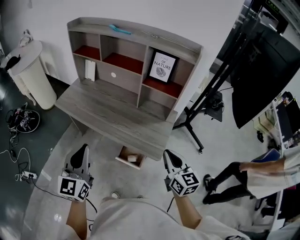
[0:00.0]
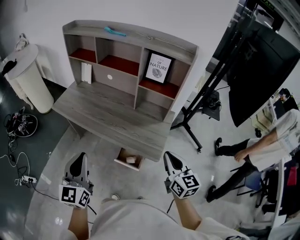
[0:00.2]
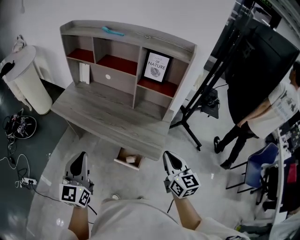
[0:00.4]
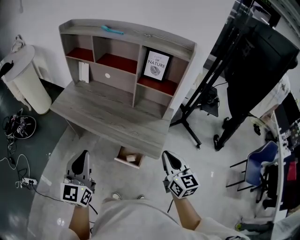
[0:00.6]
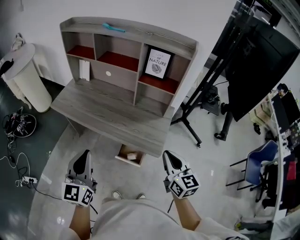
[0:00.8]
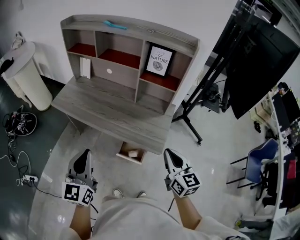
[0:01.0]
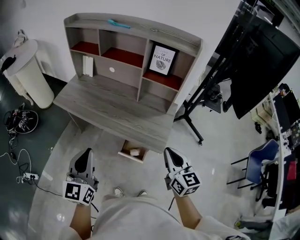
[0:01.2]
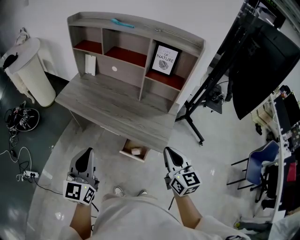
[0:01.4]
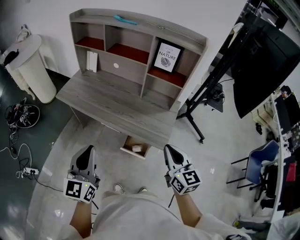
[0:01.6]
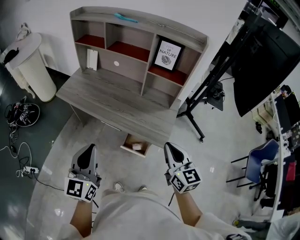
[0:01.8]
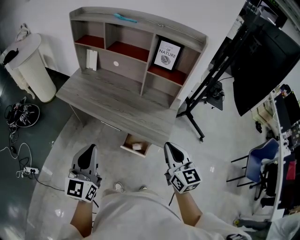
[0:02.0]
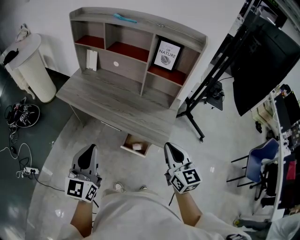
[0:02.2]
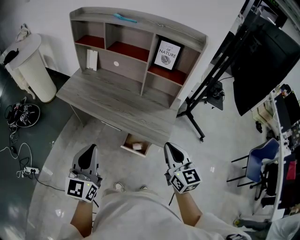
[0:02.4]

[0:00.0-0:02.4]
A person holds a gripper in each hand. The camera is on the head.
0:00.0 to 0:01.2: The grippers make only small movements.
0:01.2 to 0:02.4: The grippers move only a little.

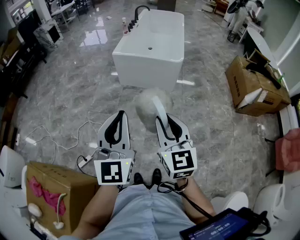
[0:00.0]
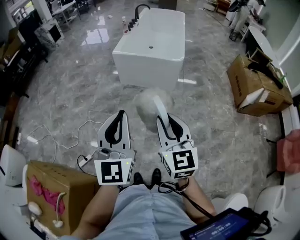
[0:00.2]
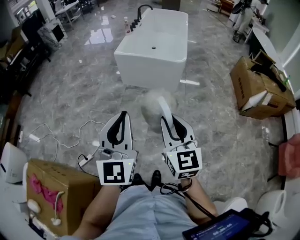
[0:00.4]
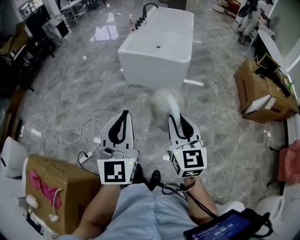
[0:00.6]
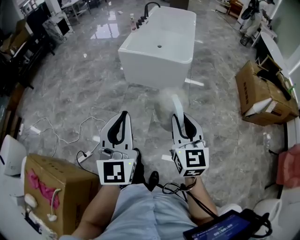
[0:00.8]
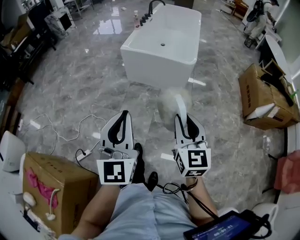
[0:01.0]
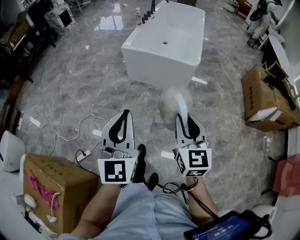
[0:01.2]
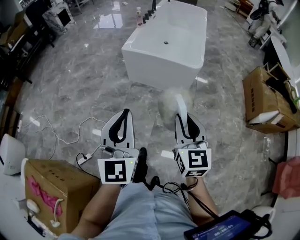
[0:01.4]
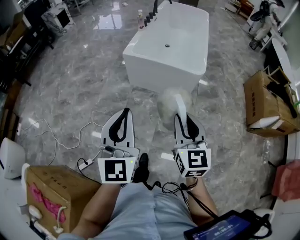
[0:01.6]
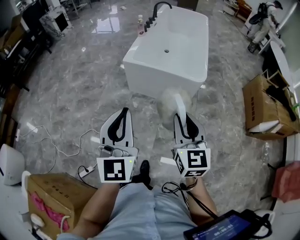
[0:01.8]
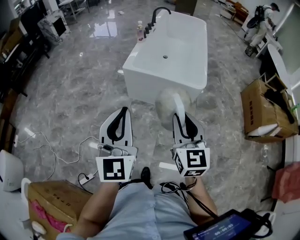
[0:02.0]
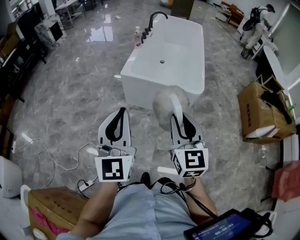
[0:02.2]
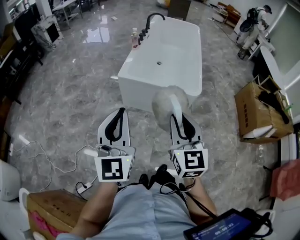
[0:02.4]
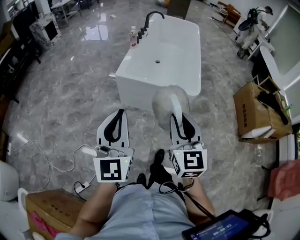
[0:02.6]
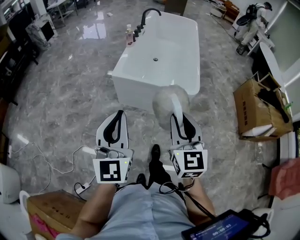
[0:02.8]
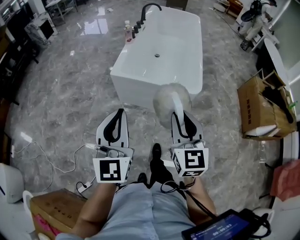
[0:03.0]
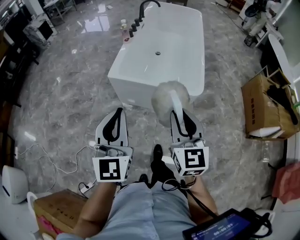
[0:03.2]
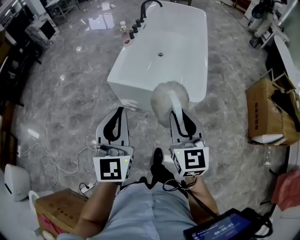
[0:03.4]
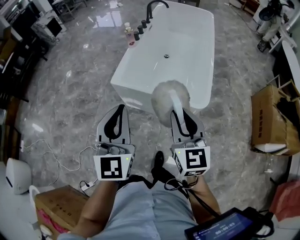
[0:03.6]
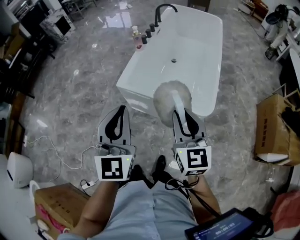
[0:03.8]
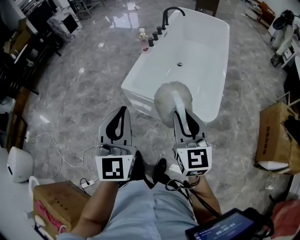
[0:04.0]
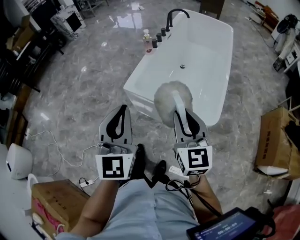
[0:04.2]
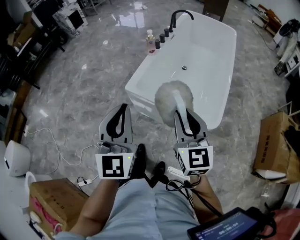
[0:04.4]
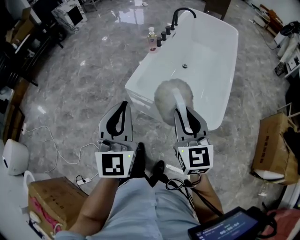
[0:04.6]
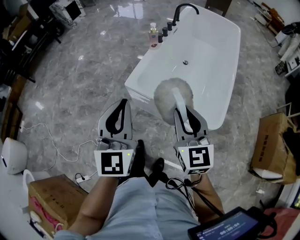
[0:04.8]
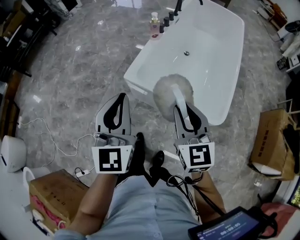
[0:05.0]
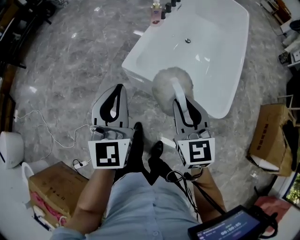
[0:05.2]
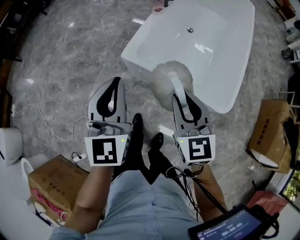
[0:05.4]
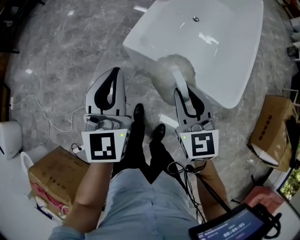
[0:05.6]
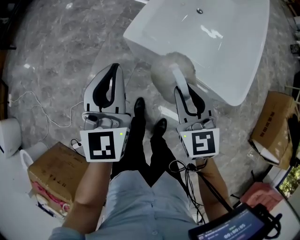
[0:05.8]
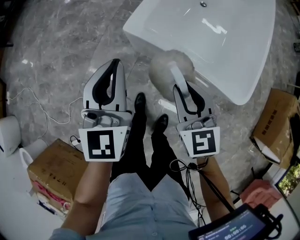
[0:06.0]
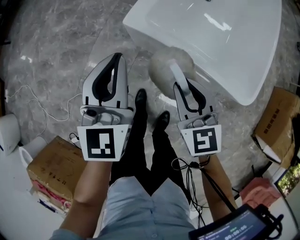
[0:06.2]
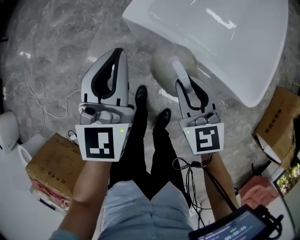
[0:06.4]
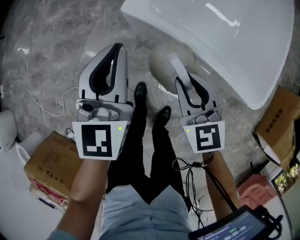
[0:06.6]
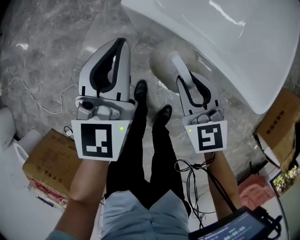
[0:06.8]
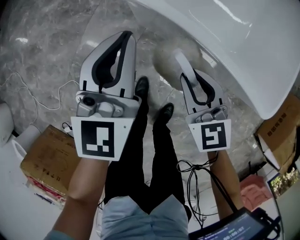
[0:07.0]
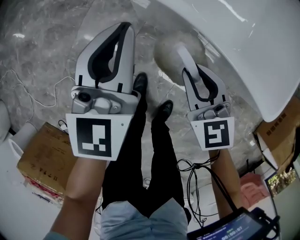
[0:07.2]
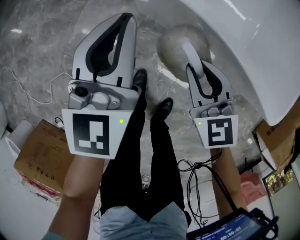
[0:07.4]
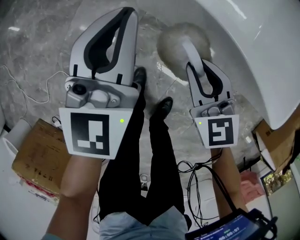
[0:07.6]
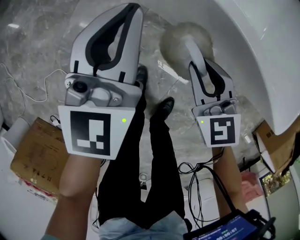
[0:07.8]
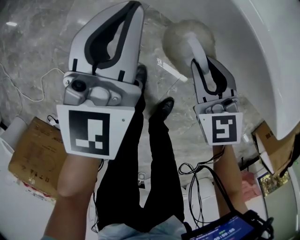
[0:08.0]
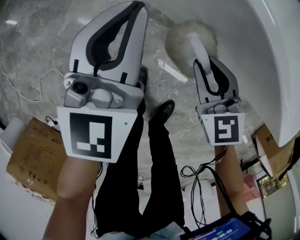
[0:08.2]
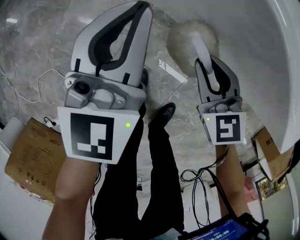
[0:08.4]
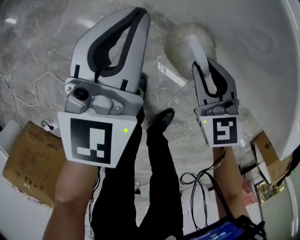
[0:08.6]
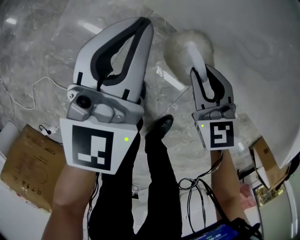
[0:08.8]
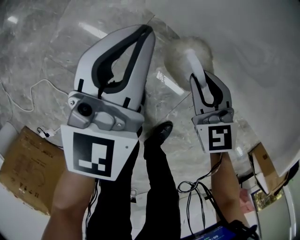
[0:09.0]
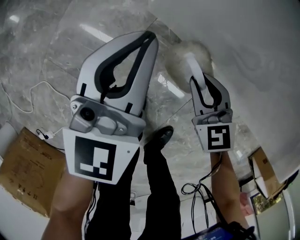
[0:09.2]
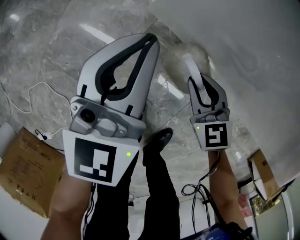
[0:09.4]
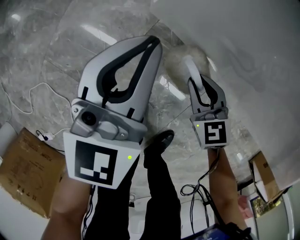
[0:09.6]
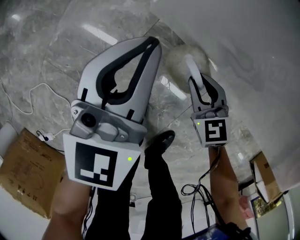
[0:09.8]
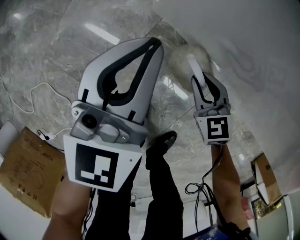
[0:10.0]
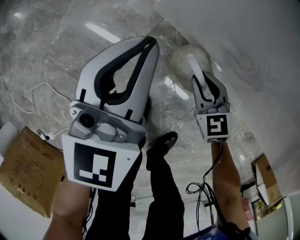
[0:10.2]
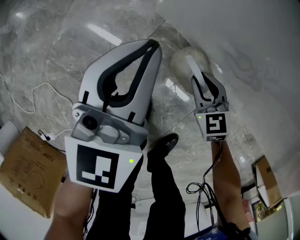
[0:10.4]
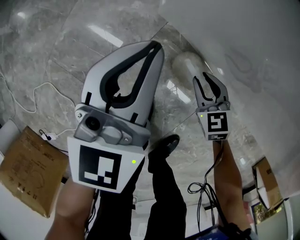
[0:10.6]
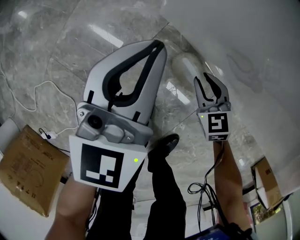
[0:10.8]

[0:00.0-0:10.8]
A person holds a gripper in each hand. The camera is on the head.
0:00.0 to 0:01.6: The two grippers go roughly 25 cm forward.
0:01.6 to 0:03.0: The two grippers go some 20 cm forward.
0:03.0 to 0:04.6: Both grippers move forward, roughly 25 cm.
0:04.6 to 0:06.2: The left gripper shifts approximately 30 cm downward and forward; the right gripper shifts approximately 30 cm downward, to the left and forward, and swivels some 20 degrees.
0:06.2 to 0:07.8: Both grippers travel together downward, approximately 30 cm.
0:07.8 to 0:09.2: Both grippers move downward, approximately 15 cm.
0:09.2 to 0:10.8: The right gripper goes roughly 10 cm downward.

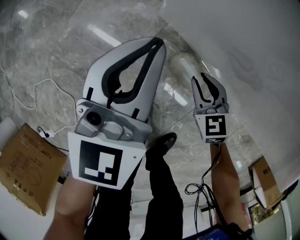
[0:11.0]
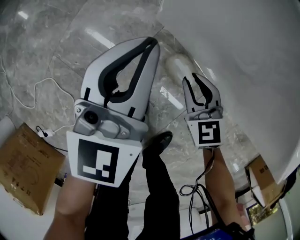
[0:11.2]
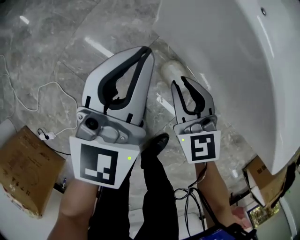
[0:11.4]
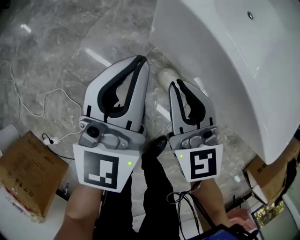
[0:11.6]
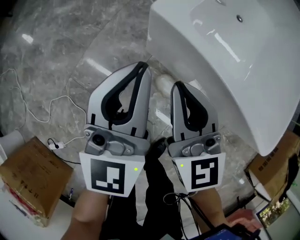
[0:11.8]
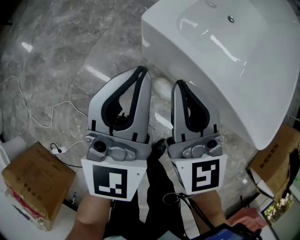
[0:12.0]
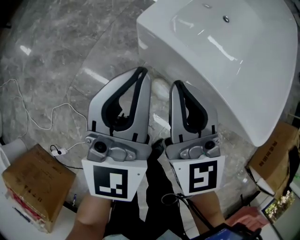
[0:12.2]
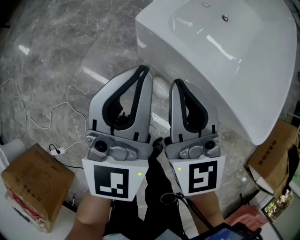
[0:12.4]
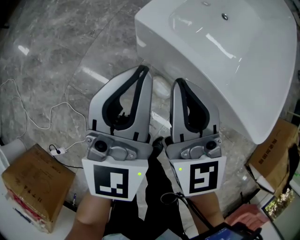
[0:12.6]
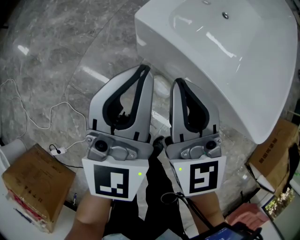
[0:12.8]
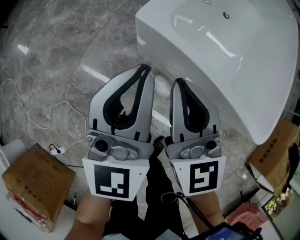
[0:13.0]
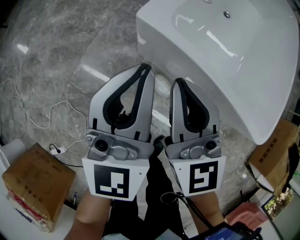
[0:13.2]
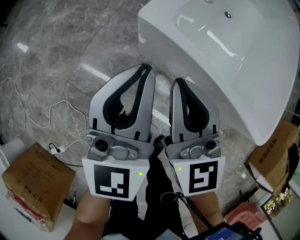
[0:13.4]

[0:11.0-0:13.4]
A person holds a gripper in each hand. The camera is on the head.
0:11.0 to 0:12.2: Both grippers travel together upward, roughly 40 cm. The right gripper angles its fingers upward, by roughly 40 degrees, and closes.
0:12.2 to 0:13.4: The grippers stay close to where they were, moving slightly.

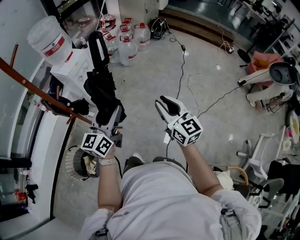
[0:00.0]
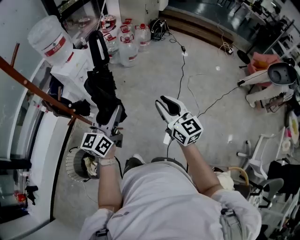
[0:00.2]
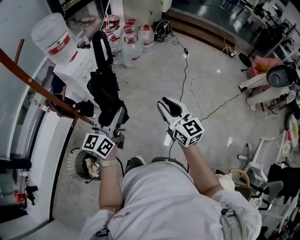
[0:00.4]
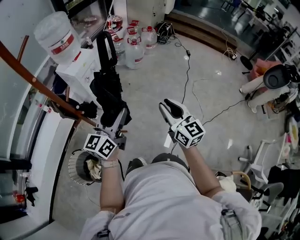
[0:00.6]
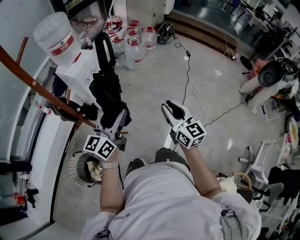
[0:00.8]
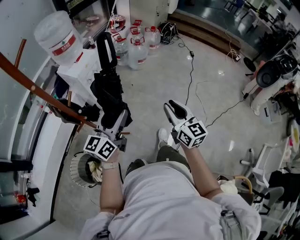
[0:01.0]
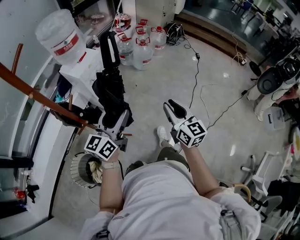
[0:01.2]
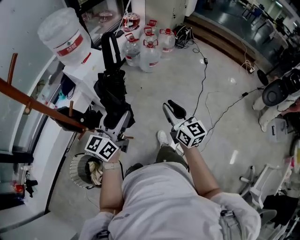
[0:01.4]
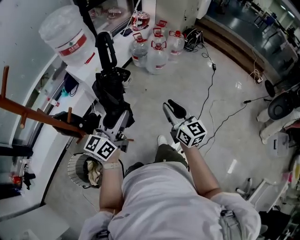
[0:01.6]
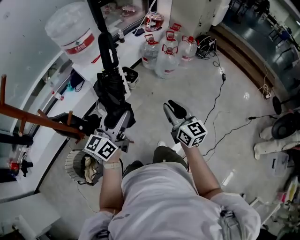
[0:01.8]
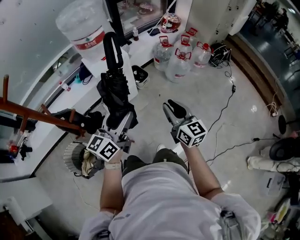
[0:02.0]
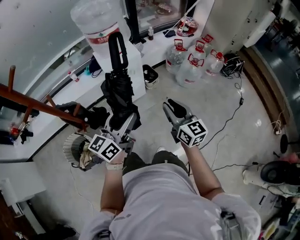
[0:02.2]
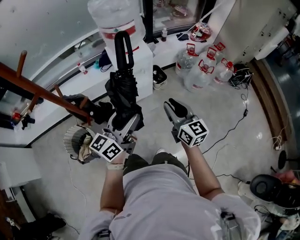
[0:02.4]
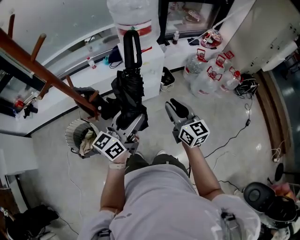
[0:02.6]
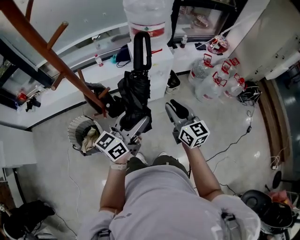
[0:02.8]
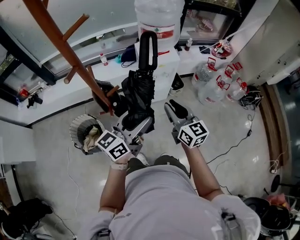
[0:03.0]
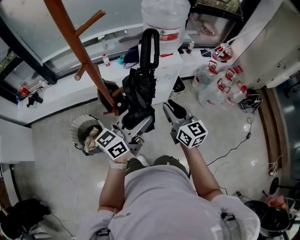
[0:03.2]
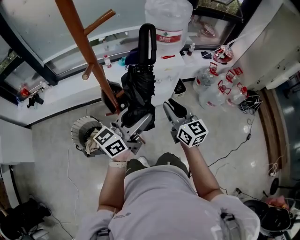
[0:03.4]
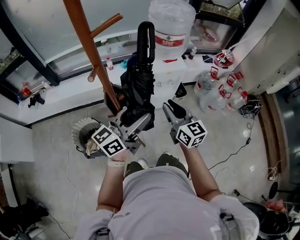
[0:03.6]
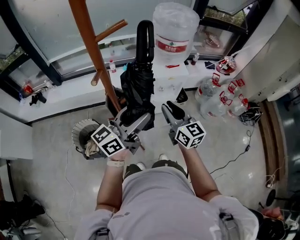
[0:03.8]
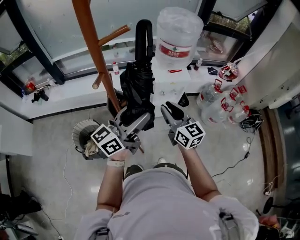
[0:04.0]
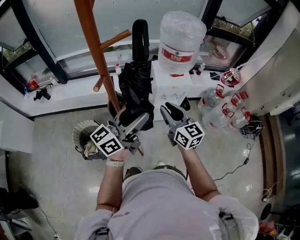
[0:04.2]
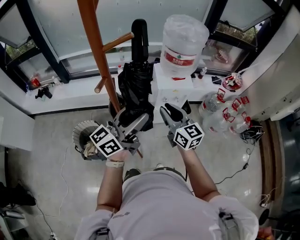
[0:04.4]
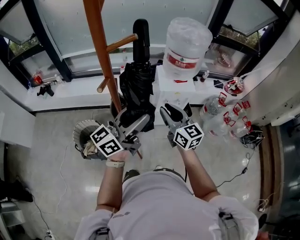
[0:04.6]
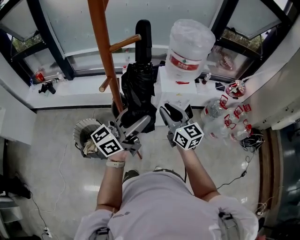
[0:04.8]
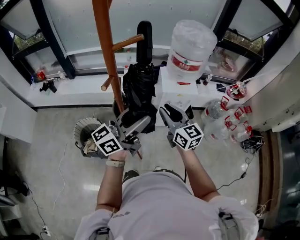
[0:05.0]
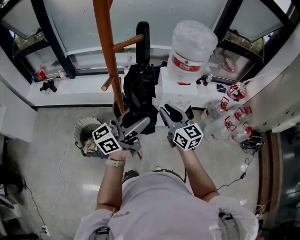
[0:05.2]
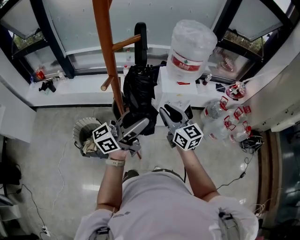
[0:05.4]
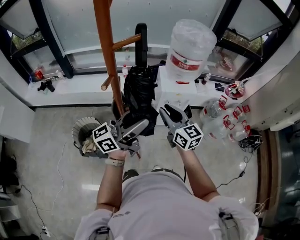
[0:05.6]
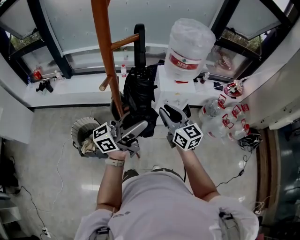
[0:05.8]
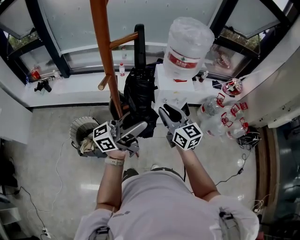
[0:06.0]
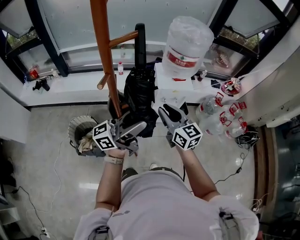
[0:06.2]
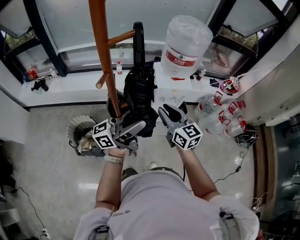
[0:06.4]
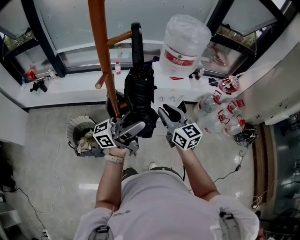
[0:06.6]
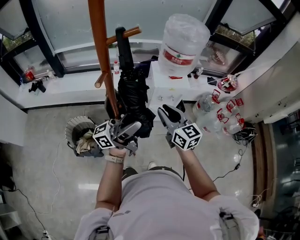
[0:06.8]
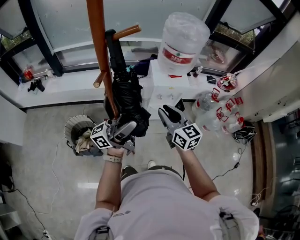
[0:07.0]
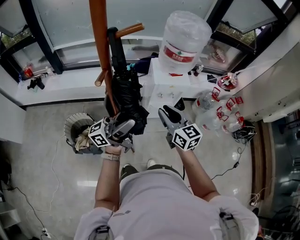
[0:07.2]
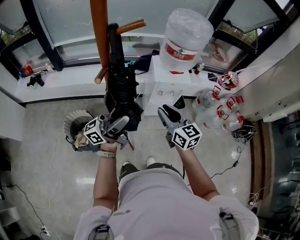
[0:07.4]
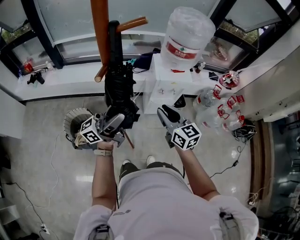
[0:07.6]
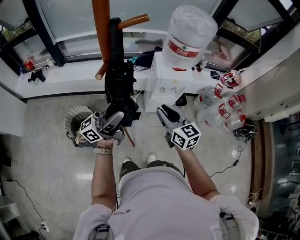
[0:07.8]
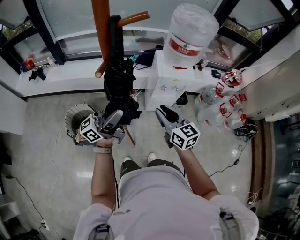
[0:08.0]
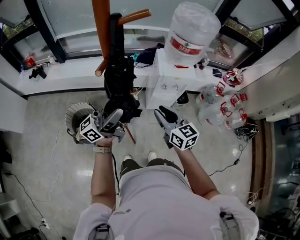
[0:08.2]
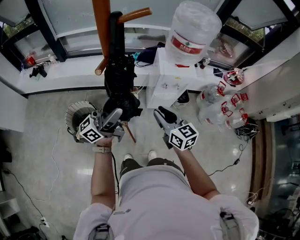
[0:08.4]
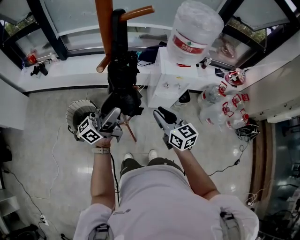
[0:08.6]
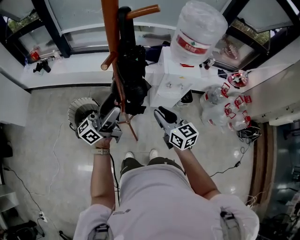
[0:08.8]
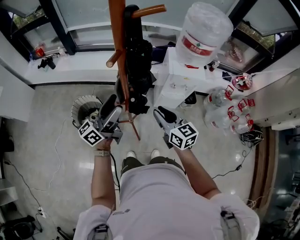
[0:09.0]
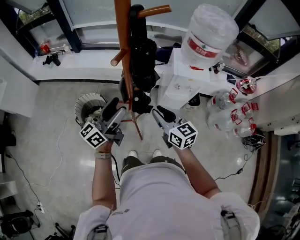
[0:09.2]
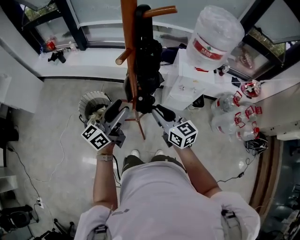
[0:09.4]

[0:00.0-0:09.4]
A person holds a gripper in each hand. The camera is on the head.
0:00.0 to 0:01.6: Both grippers move forward, roughly 20 cm.
0:01.6 to 0:03.2: The right gripper changes place by about 25 cm, and changes its angle by approximately 40 degrees. The left gripper shifts by some 10 cm, and swivels approximately 20 degrees.
0:03.2 to 0:04.8: The left gripper goes some 10 cm upward; the right gripper travels forward and to the left by approximately 10 cm.
0:04.8 to 0:06.2: The left gripper changes its angle by roughly 20 degrees.
0:06.2 to 0:07.8: The right gripper shifts by some 5 cm. Meanwhile the left gripper heads to the left, covering some 10 cm.
0:07.8 to 0:09.4: The right gripper travels to the left by approximately 10 cm. Meanwhile the left gripper moves downward and to the left, approximately 10 cm, and rotates about 40 degrees.
